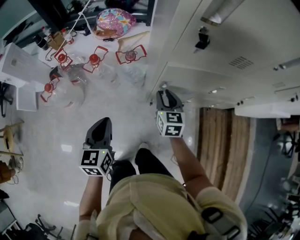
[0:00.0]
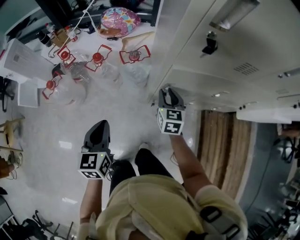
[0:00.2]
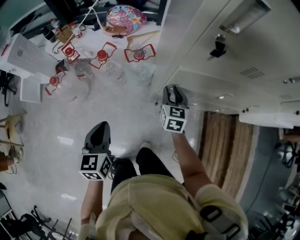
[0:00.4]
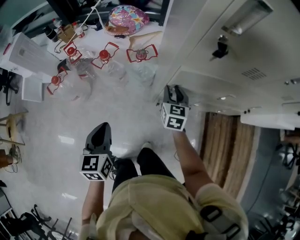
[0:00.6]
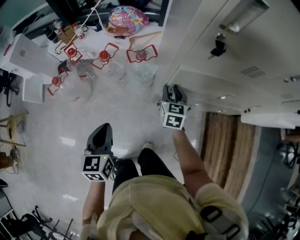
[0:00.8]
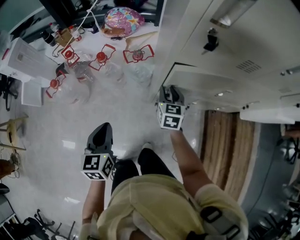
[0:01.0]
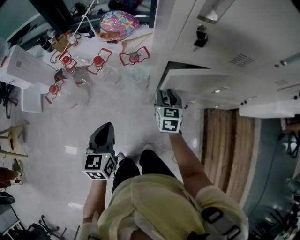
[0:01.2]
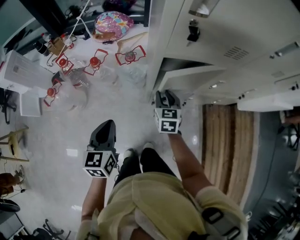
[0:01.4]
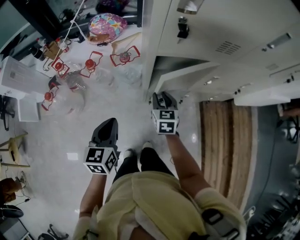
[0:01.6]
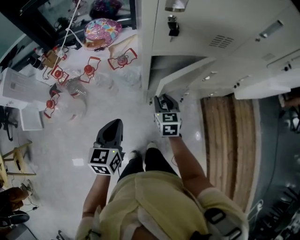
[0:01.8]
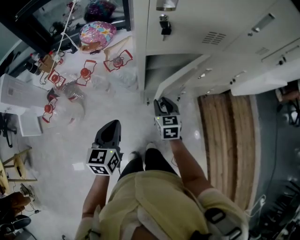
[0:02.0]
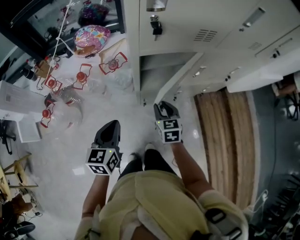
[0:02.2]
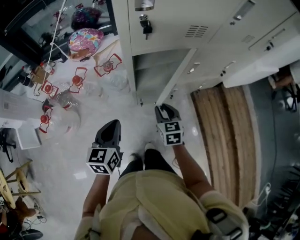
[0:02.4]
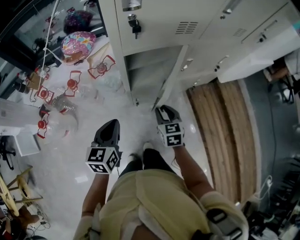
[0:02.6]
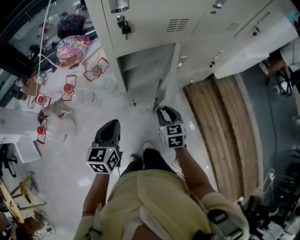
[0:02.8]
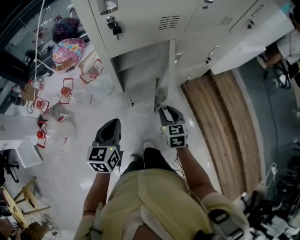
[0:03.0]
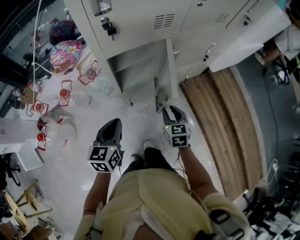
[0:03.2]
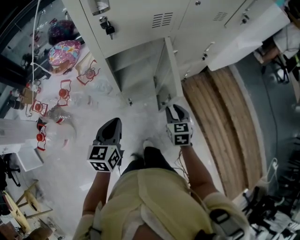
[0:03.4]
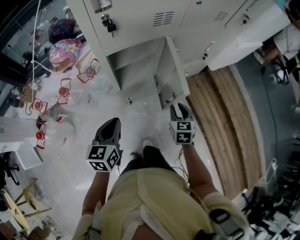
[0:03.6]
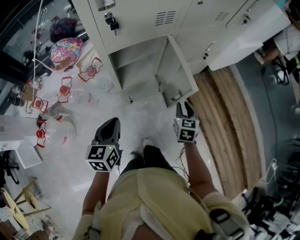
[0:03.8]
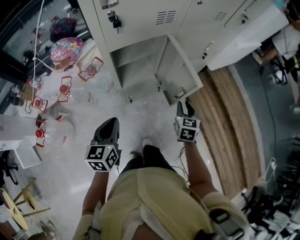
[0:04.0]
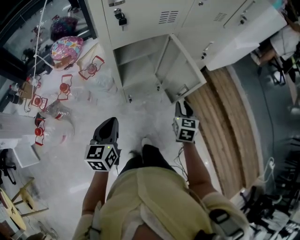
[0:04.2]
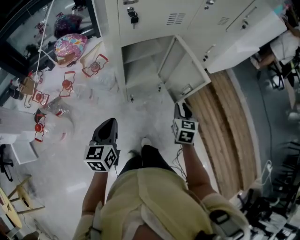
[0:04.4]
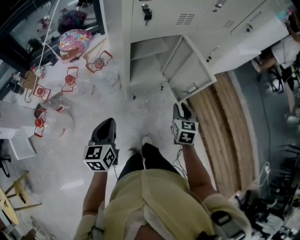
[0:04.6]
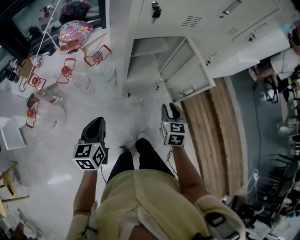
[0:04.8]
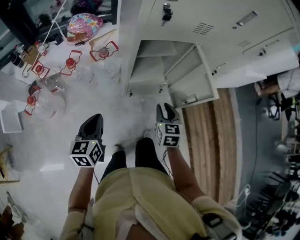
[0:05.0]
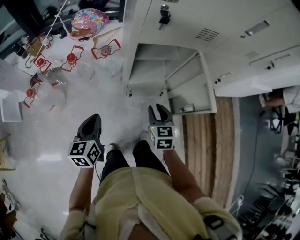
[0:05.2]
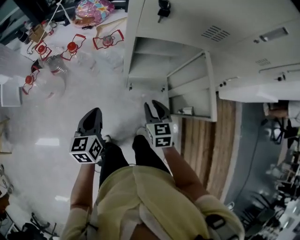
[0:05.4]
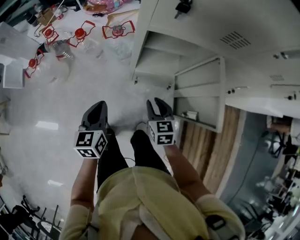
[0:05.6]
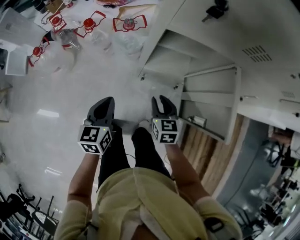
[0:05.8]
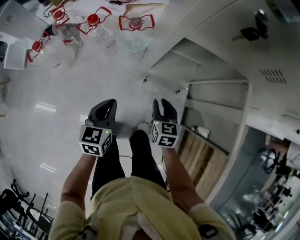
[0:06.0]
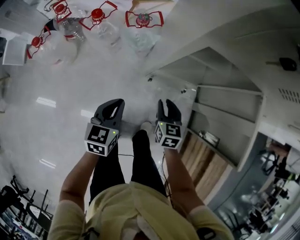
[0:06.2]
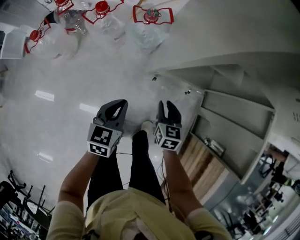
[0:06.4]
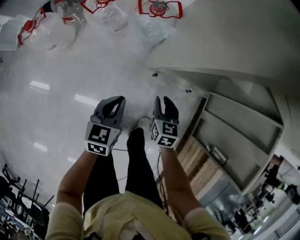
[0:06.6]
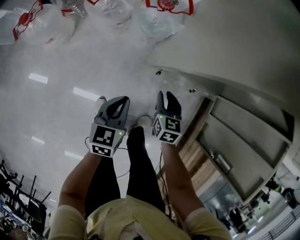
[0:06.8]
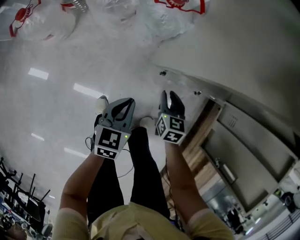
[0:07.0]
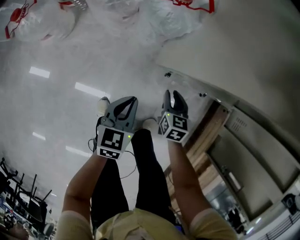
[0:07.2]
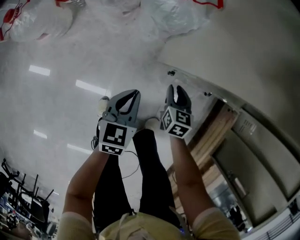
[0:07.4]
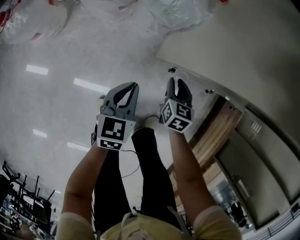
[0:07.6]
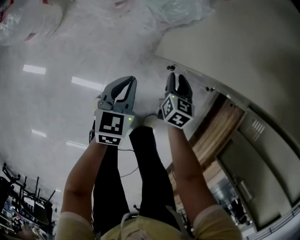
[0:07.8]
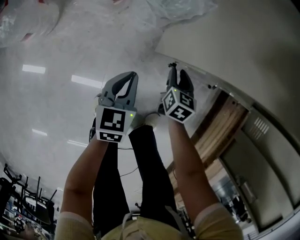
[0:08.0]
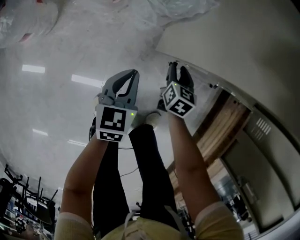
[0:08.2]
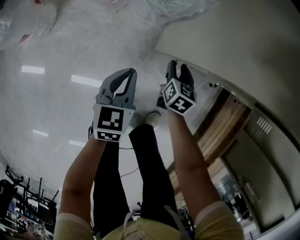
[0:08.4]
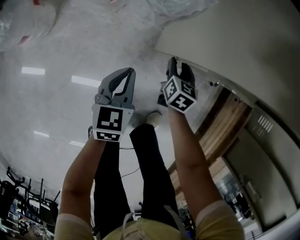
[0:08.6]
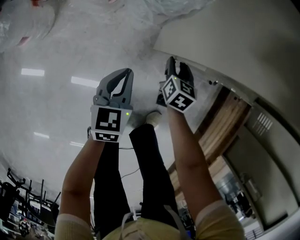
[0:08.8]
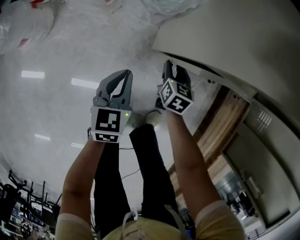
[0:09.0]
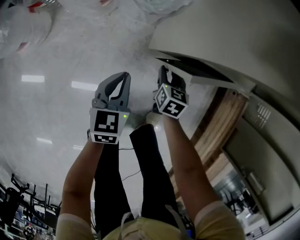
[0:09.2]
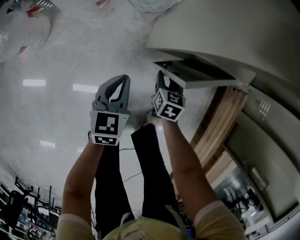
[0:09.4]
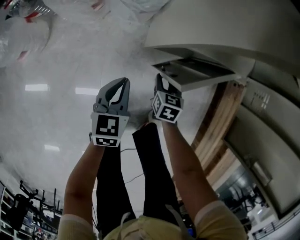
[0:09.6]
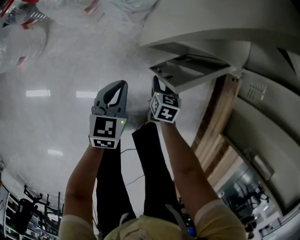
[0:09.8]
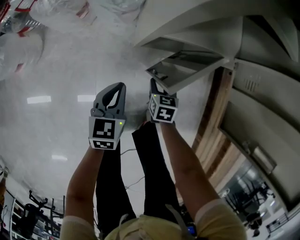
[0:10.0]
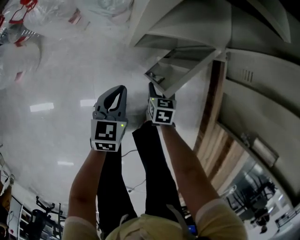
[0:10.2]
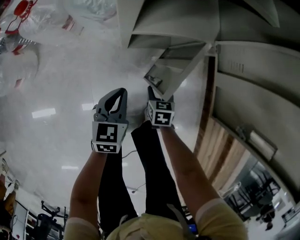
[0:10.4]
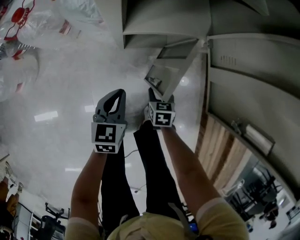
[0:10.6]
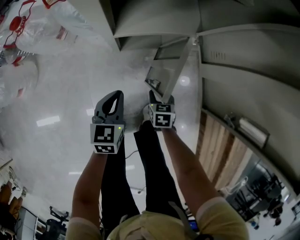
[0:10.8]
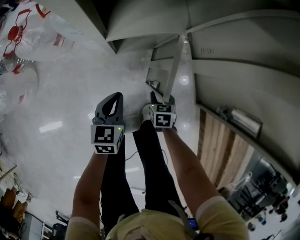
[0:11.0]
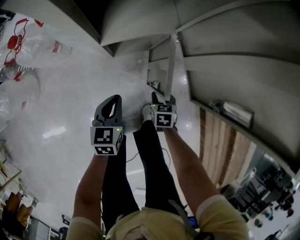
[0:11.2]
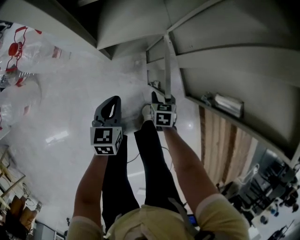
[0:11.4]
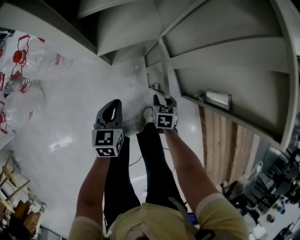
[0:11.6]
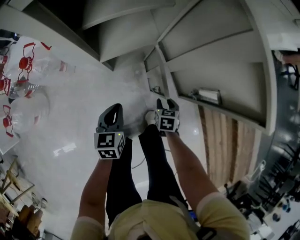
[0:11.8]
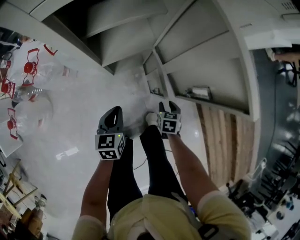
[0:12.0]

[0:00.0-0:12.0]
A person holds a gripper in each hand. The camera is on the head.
0:00.0 to 0:01.6: The grippers stay close to where they were, moving slightly.
0:01.6 to 0:03.0: The right gripper heads to the right and backward, covering about 20 cm. The left gripper shifts some 10 cm to the right, and swivels about 20 degrees.
0:03.0 to 0:04.4: The right gripper shifts about 5 cm to the right; the left gripper moves backward, some 5 cm.
0:04.4 to 0:06.0: The right gripper shifts by approximately 20 cm, and rotates some 40 degrees; the left gripper moves downward, some 10 cm, and turns by roughly 30 degrees.
0:06.0 to 0:07.6: The two grippers go about 30 cm downward.
0:07.6 to 0:09.0: The right gripper shifts by roughly 5 cm.
0:09.0 to 0:10.4: The right gripper is displaced backward and to the right by roughly 20 cm, while the left gripper is displaced to the right by some 15 cm.
0:10.4 to 0:12.0: The right gripper heads upward and to the right, covering some 20 cm, and turns by roughly 20 degrees. Meanwhile the left gripper goes roughly 10 cm upward.

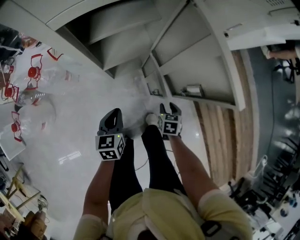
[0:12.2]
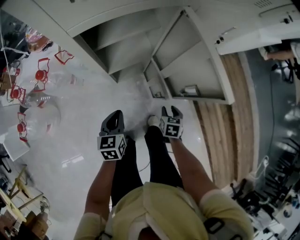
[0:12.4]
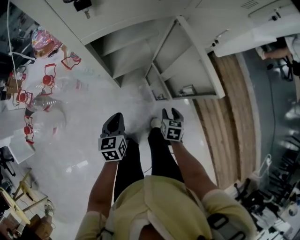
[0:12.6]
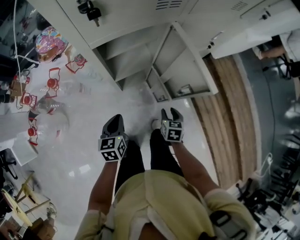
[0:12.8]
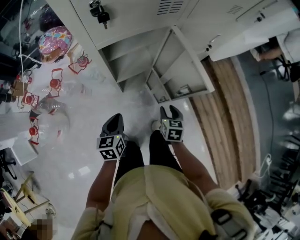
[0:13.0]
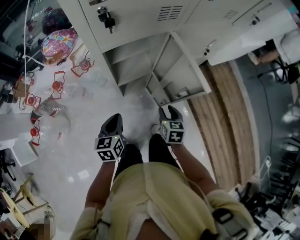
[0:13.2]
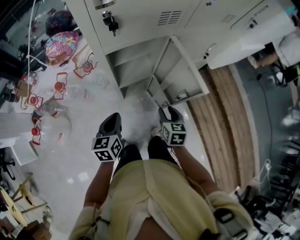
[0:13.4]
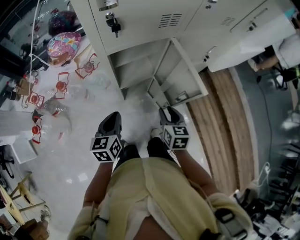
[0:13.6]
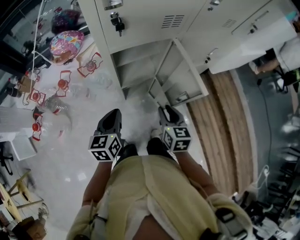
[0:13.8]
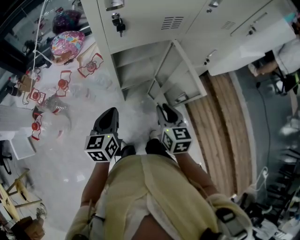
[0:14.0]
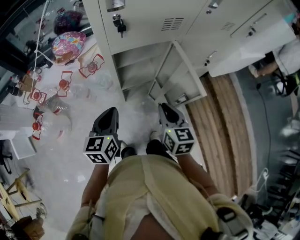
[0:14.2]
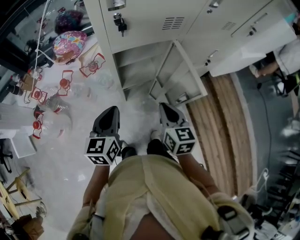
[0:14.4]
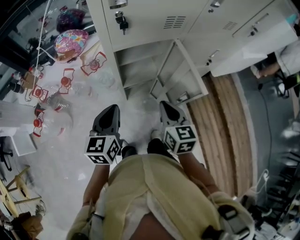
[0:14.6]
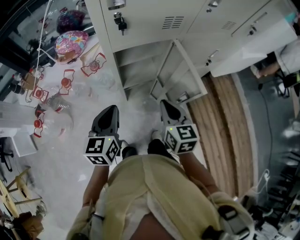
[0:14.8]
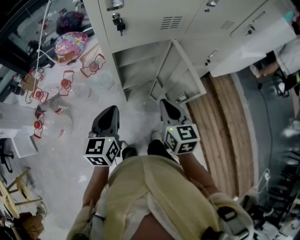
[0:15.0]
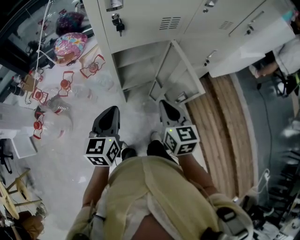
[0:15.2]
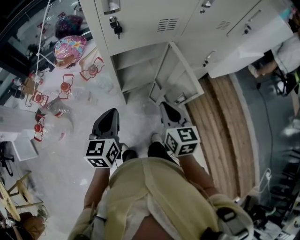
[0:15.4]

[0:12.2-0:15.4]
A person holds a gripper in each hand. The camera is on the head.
0:12.2 to 0:13.8: The grippers both shift upward by some 25 cm. The right gripper swivels approximately 30 degrees.
0:13.8 to 0:15.4: The two grippers go approximately 10 cm upward. The right gripper closes.

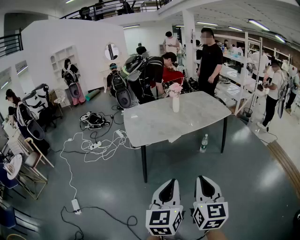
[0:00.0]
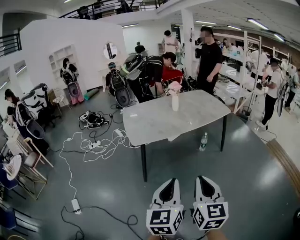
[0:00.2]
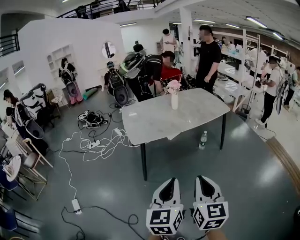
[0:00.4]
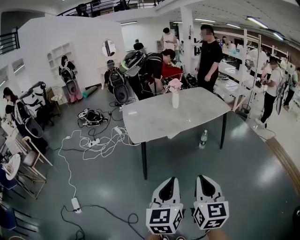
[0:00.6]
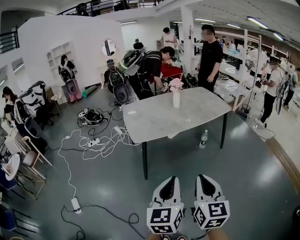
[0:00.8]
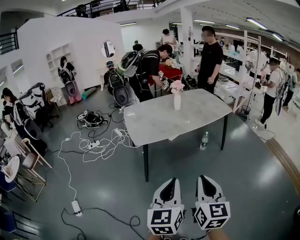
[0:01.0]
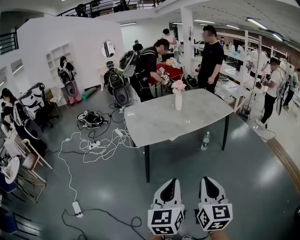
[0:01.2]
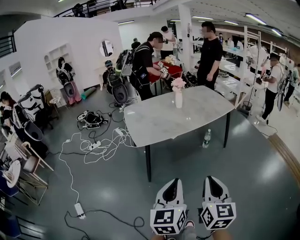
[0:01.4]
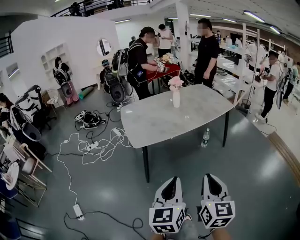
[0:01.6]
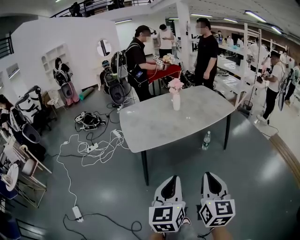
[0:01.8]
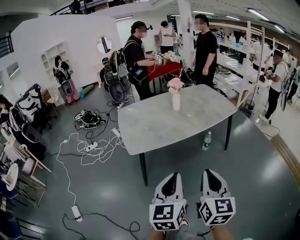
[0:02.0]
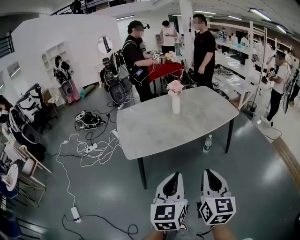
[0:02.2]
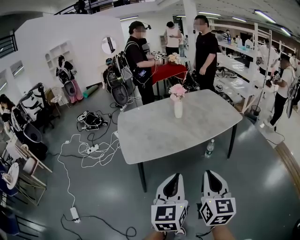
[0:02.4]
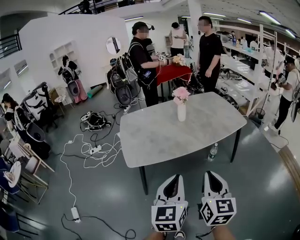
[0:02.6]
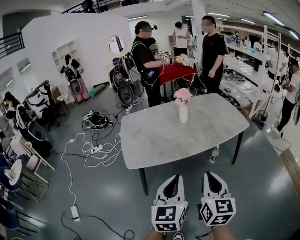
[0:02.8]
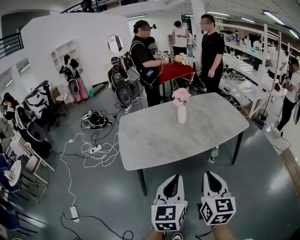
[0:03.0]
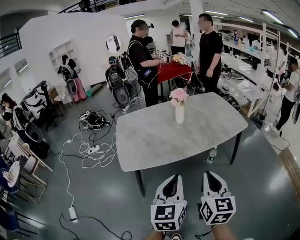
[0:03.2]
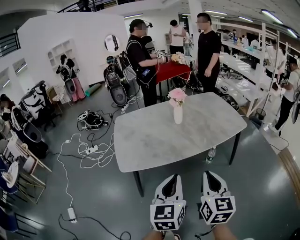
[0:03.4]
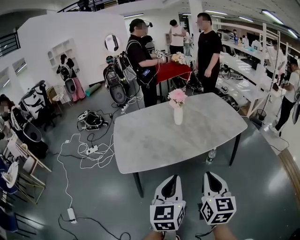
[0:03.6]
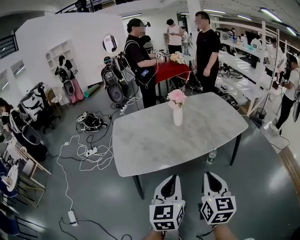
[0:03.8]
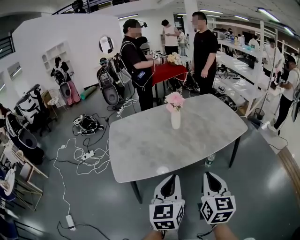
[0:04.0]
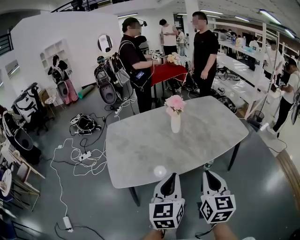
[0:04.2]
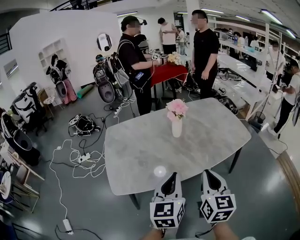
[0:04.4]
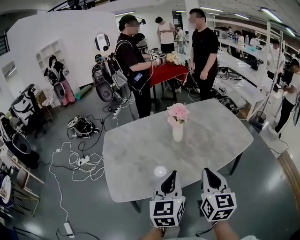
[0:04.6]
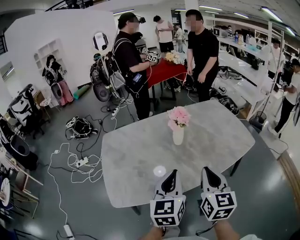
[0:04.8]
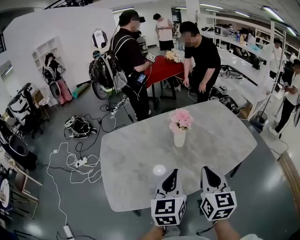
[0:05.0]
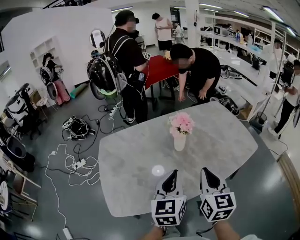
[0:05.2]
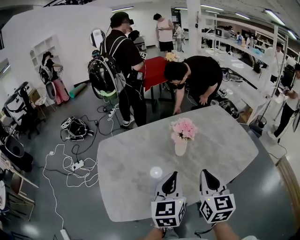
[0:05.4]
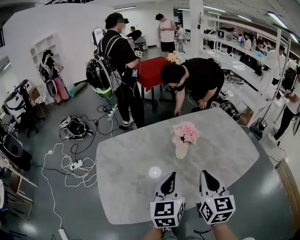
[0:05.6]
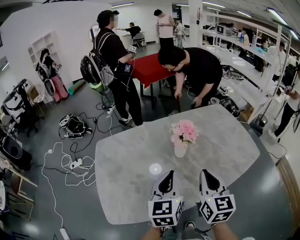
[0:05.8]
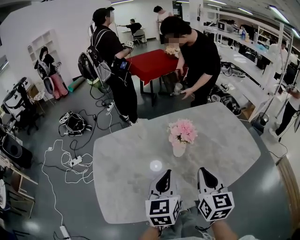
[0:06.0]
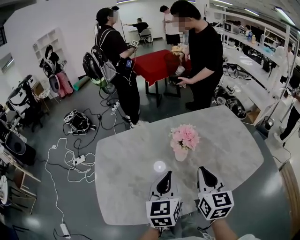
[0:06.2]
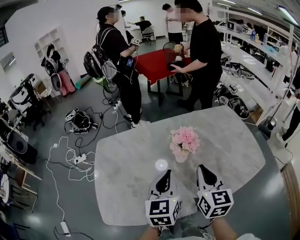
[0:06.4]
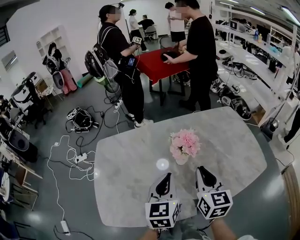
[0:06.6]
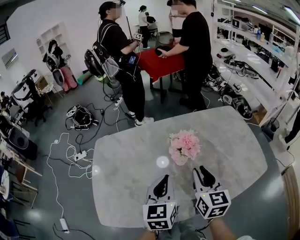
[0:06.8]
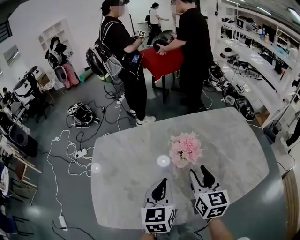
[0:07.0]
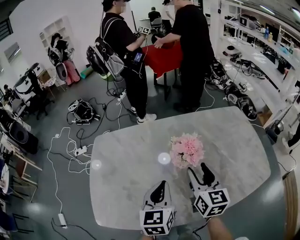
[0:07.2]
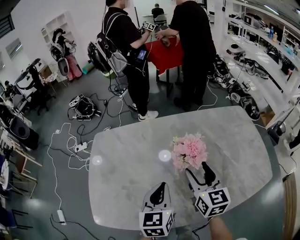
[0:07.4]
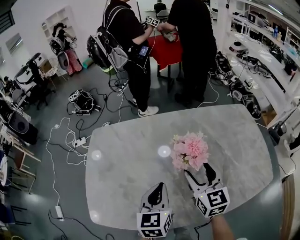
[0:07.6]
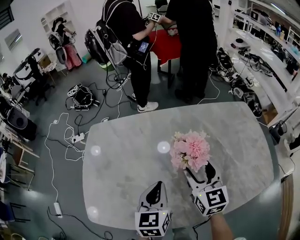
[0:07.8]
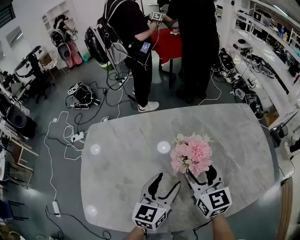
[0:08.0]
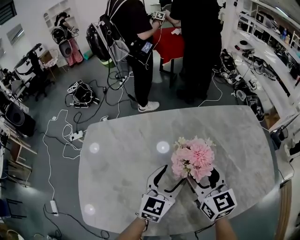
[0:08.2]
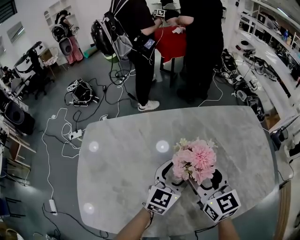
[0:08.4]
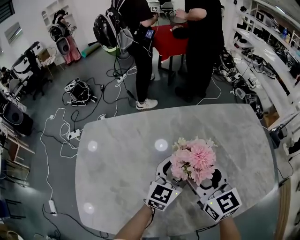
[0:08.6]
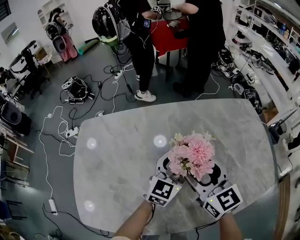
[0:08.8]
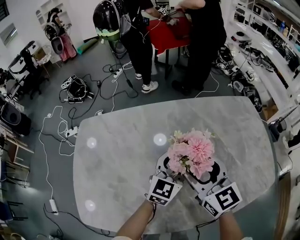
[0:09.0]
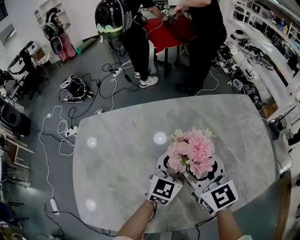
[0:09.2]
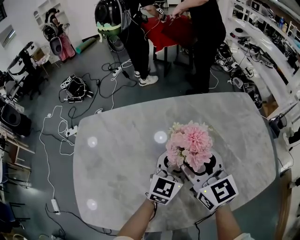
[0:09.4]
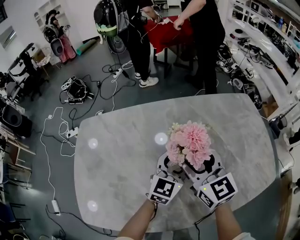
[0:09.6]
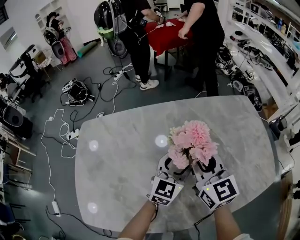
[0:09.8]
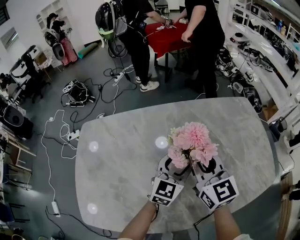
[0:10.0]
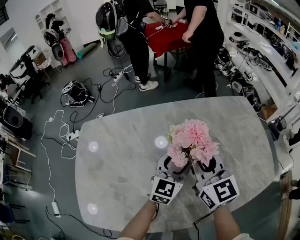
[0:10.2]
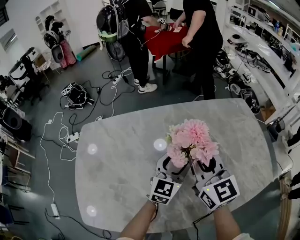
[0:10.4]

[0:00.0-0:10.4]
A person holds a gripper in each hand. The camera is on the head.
0:00.0 to 0:01.4: The left gripper goes about 5 cm to the left.
0:01.4 to 0:03.0: Both grippers move forward, approximately 25 cm.
0:03.0 to 0:04.4: Both grippers move forward, some 20 cm.
0:04.4 to 0:06.0: The two grippers go about 20 cm forward.
0:06.0 to 0:07.4: The right gripper travels forward and downward by roughly 15 cm, and opens up; the left gripper travels downward and forward by roughly 10 cm.
0:07.4 to 0:09.0: The left gripper shifts approximately 20 cm forward, to the right and downward, turns by about 30 degrees, and opens its fingers.
0:09.0 to 0:10.4: The right gripper closes its fingers.
